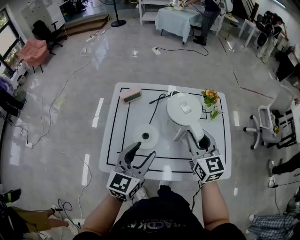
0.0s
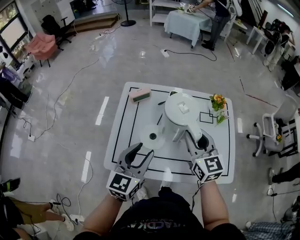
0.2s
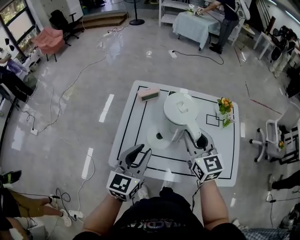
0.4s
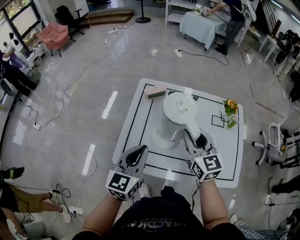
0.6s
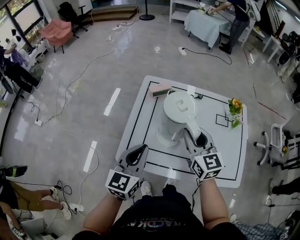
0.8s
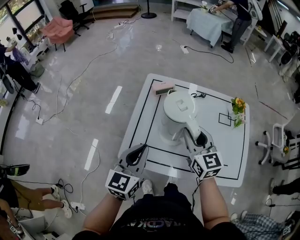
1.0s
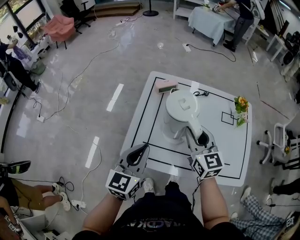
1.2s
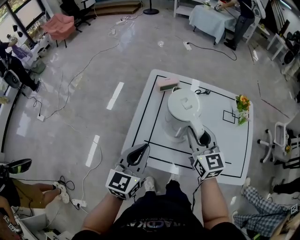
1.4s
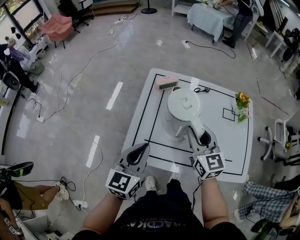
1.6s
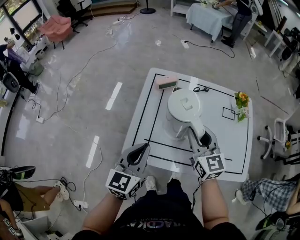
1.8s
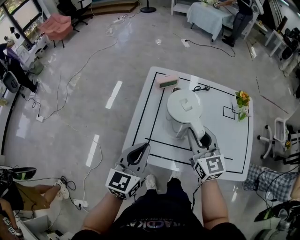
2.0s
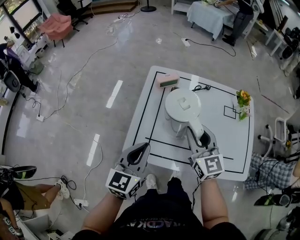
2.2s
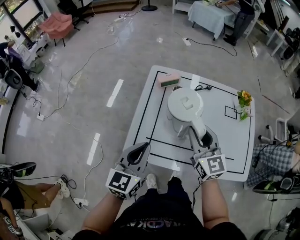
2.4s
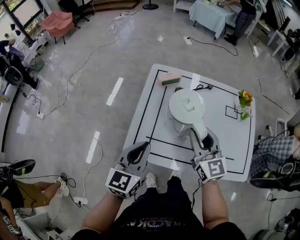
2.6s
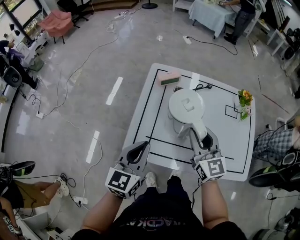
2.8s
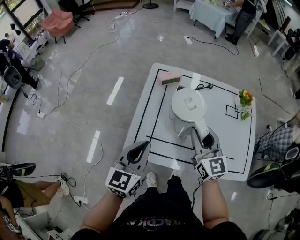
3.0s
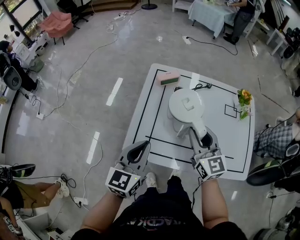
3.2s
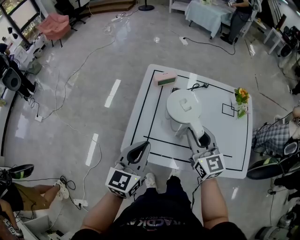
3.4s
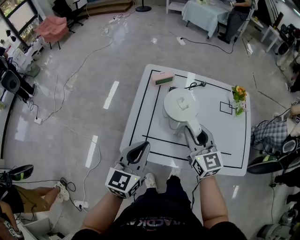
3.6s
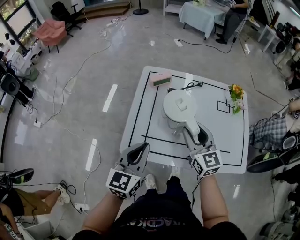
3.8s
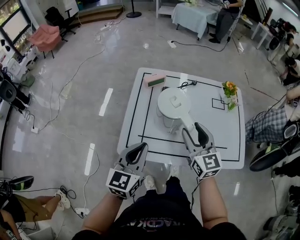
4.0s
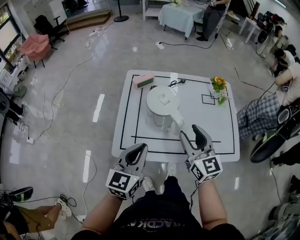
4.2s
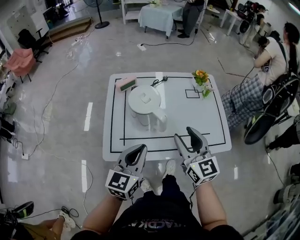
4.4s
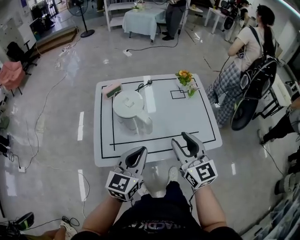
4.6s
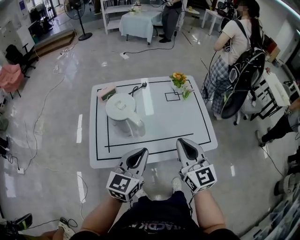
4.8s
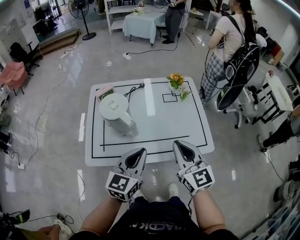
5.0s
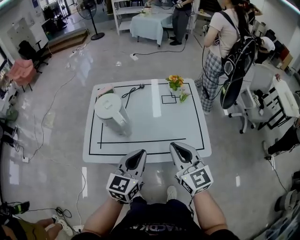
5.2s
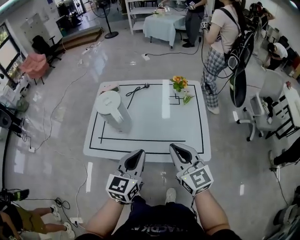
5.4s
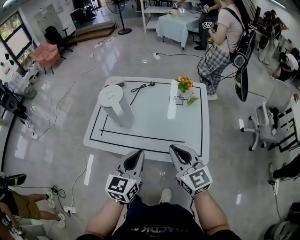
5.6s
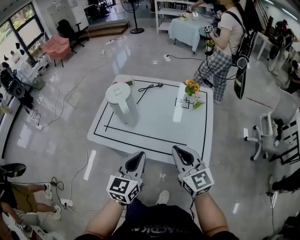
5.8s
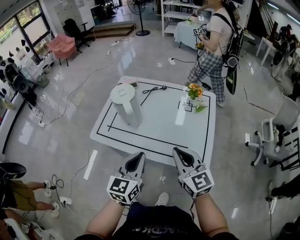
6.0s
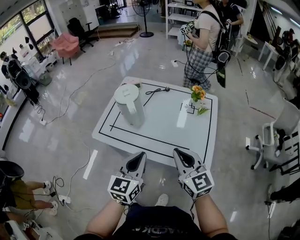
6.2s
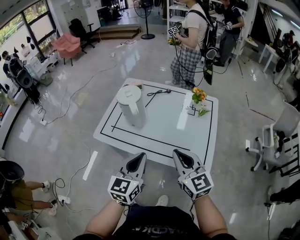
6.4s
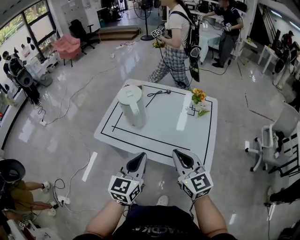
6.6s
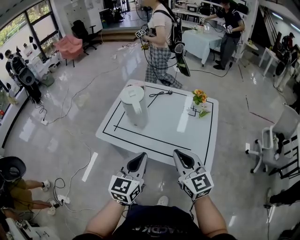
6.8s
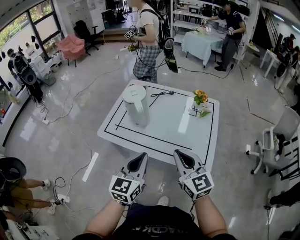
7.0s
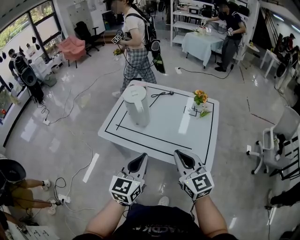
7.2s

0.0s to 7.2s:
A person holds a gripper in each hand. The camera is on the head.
0.0s to 1.4s: Both grippers move to the left, about 15 cm. The left gripper closes up.
1.4s to 2.8s: The grippers move only a little.
2.8s to 4.4s: The left gripper is displaced to the right by roughly 10 cm; the right gripper shifts roughly 15 cm backward and to the right.
4.4s to 5.8s: The left gripper moves roughly 20 cm. The right gripper moves roughly 20 cm, rotates roughly 20 degrees, and closes.
5.8s to 7.2s: The right gripper changes place by approximately 5 cm. The left gripper changes place by about 5 cm.

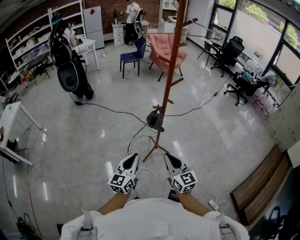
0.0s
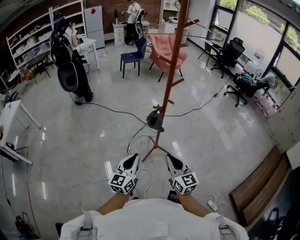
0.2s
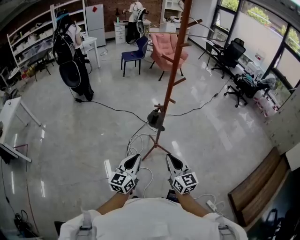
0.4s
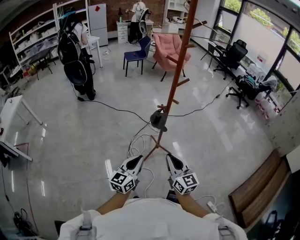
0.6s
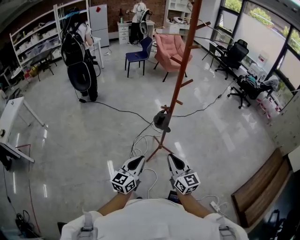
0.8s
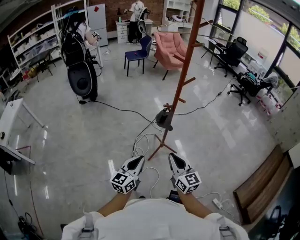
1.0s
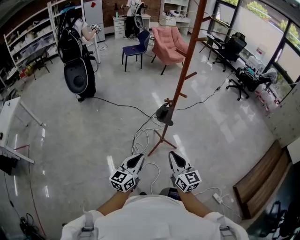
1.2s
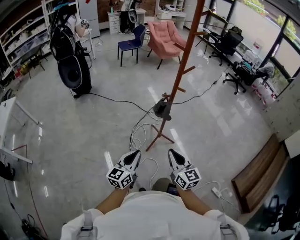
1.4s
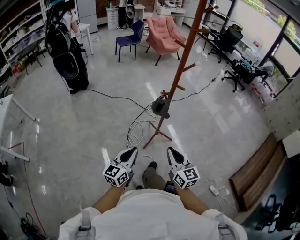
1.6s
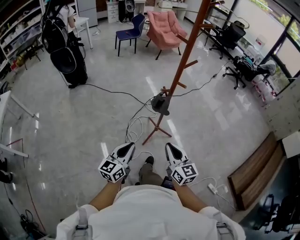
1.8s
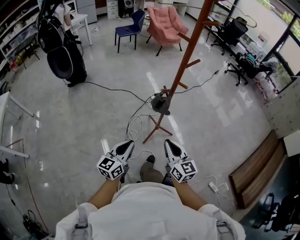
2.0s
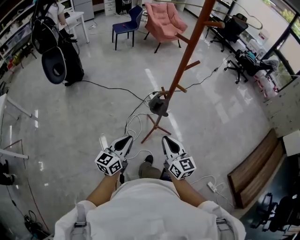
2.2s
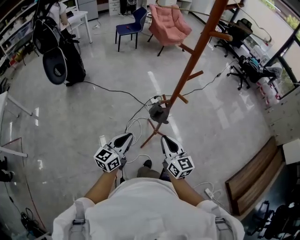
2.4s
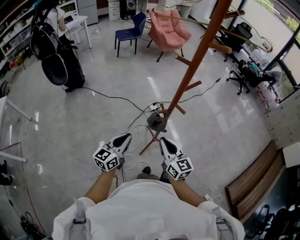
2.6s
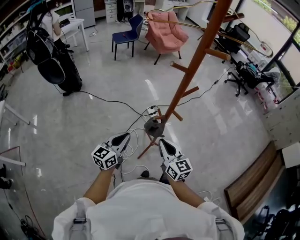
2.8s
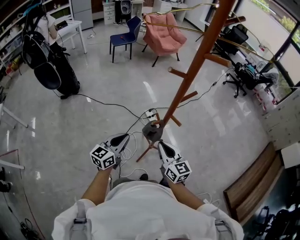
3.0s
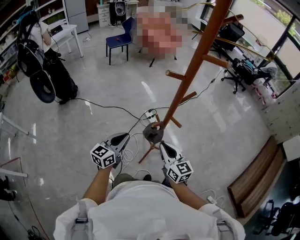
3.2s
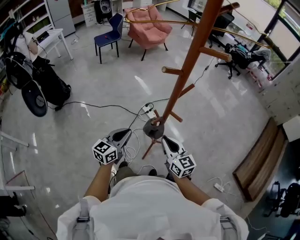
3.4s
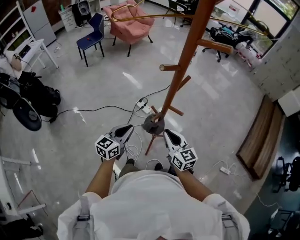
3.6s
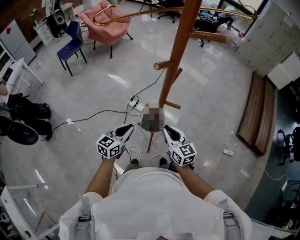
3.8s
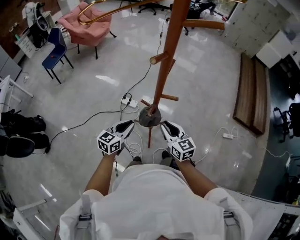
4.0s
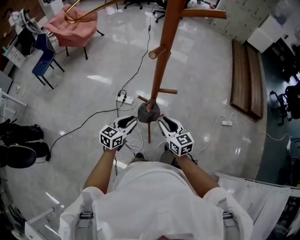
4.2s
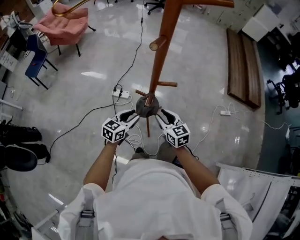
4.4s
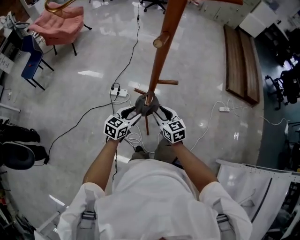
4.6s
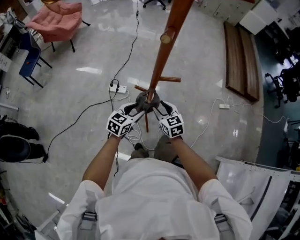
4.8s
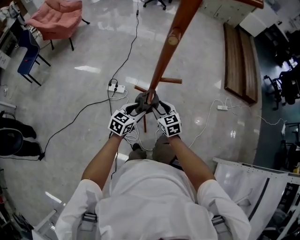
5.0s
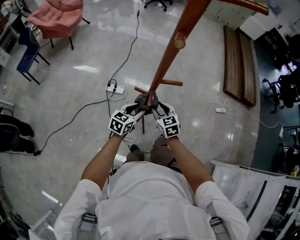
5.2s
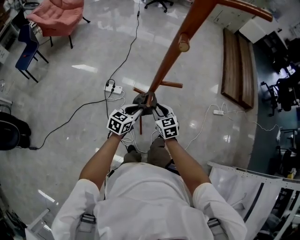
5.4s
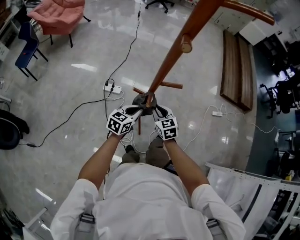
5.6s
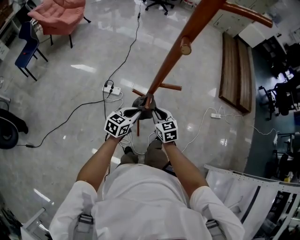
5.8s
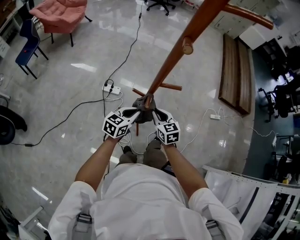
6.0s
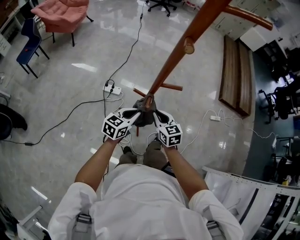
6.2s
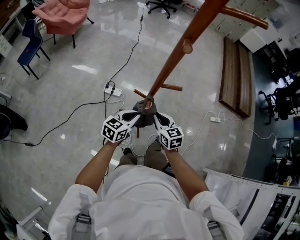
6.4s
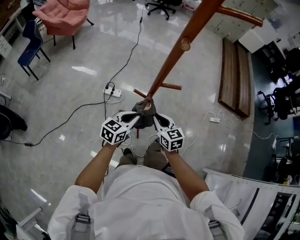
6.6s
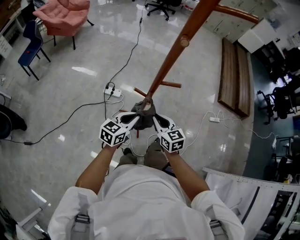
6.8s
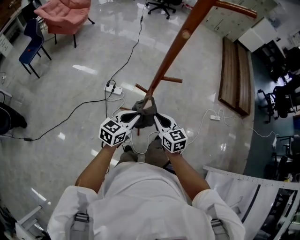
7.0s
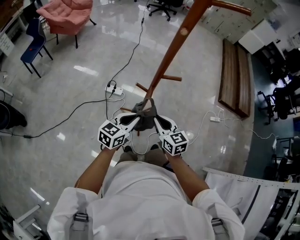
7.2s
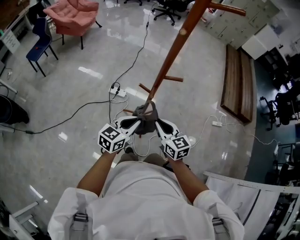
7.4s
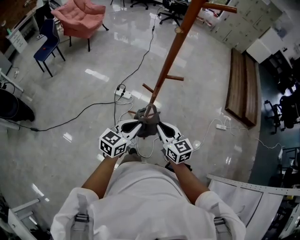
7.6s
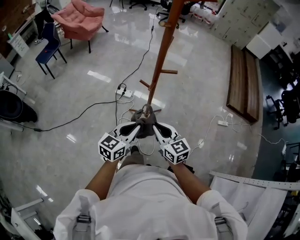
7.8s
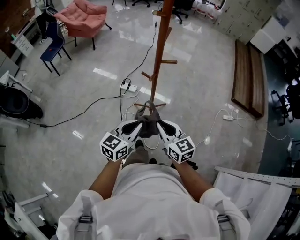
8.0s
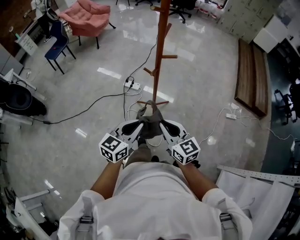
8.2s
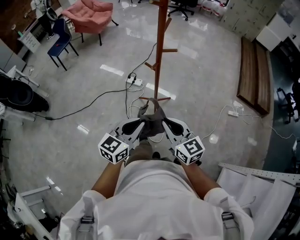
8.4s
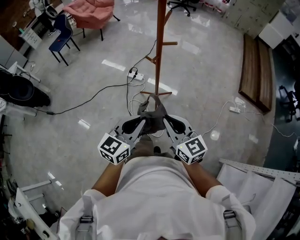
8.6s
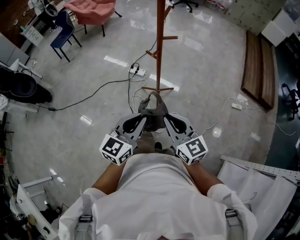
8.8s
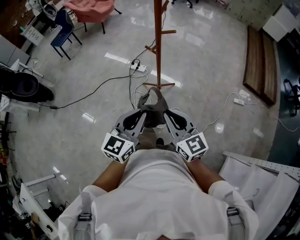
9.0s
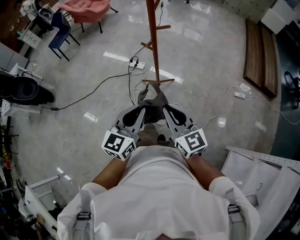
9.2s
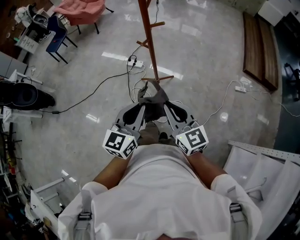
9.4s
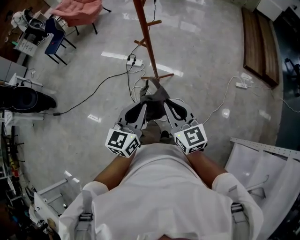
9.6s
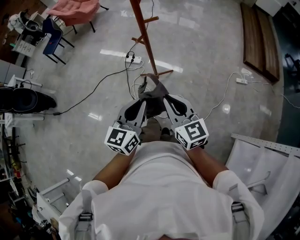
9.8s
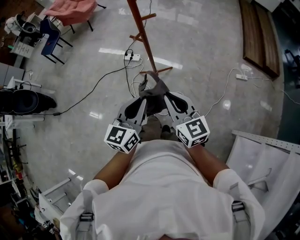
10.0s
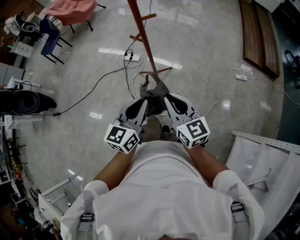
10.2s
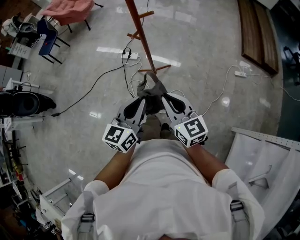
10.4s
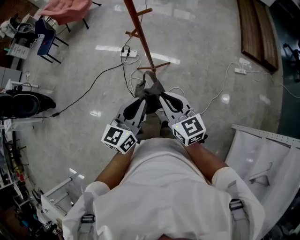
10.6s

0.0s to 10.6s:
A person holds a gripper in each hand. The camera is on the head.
0.0s to 1.6s: Both grippers travel together to the left, about 10 cm.
1.6s to 3.0s: The grippers both shift forward by roughly 30 cm.
3.0s to 4.6s: Both grippers move downward, some 20 cm. The left gripper turns by about 60 degrees, and opens up; the right gripper turns by approximately 50 degrees, and opens its fingers.
4.6s to 6.0s: The left gripper closes up. Meanwhile the right gripper closes up.
6.0s to 7.6s: The grippers both shift backward and upward by about 20 cm.
7.6s to 9.0s: Both grippers travel together backward and upward, roughly 20 cm.
9.0s to 10.6s: The left gripper moves approximately 5 cm, while the right gripper ends up some 5 cm from where it was.

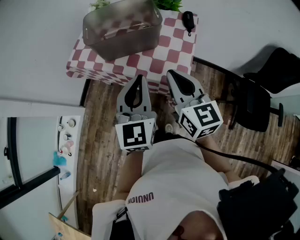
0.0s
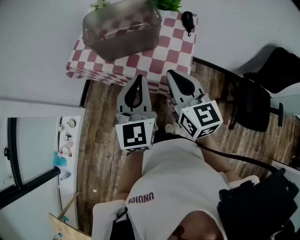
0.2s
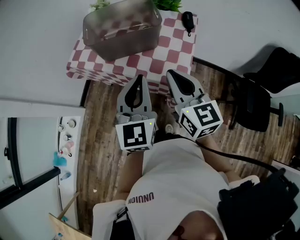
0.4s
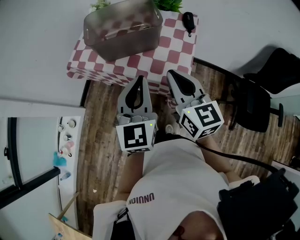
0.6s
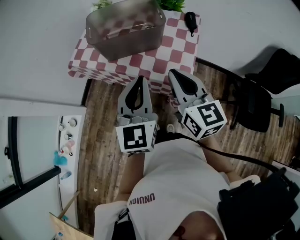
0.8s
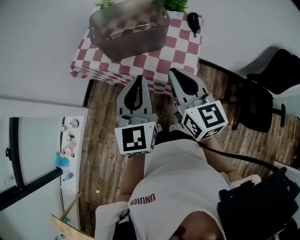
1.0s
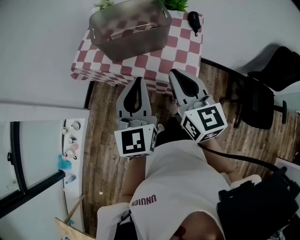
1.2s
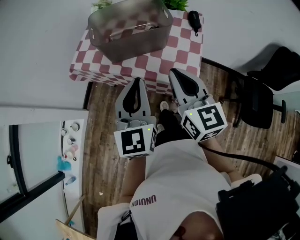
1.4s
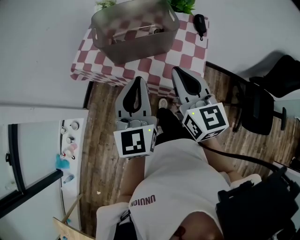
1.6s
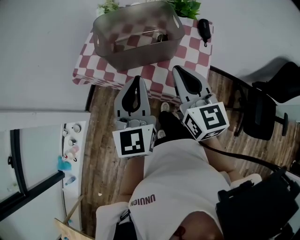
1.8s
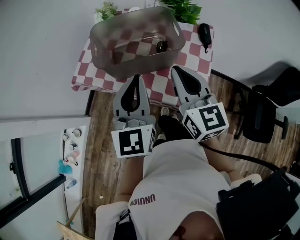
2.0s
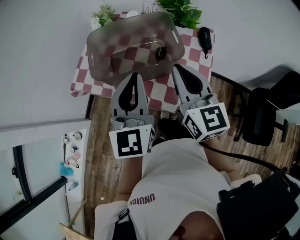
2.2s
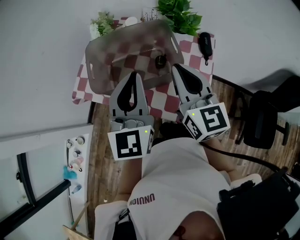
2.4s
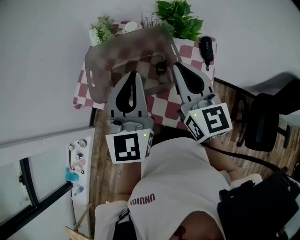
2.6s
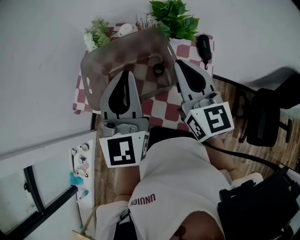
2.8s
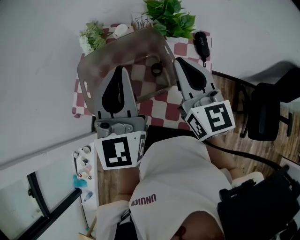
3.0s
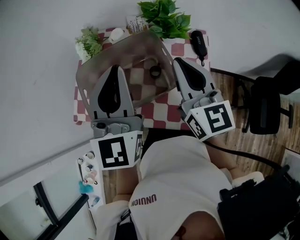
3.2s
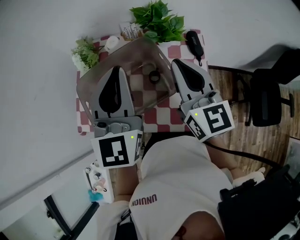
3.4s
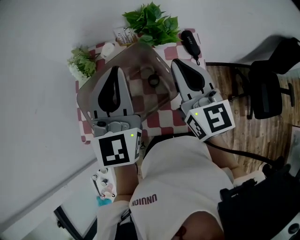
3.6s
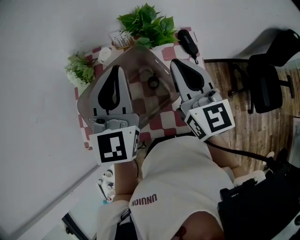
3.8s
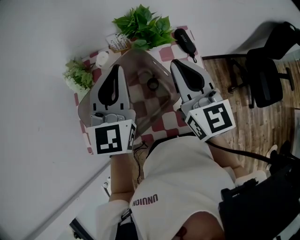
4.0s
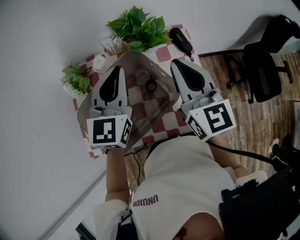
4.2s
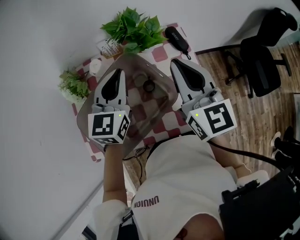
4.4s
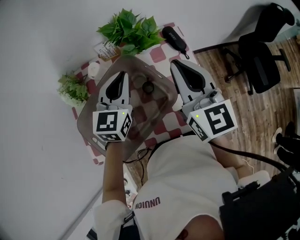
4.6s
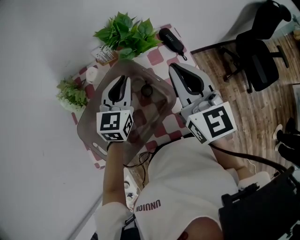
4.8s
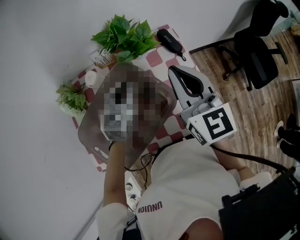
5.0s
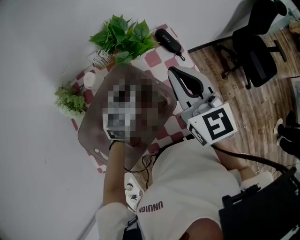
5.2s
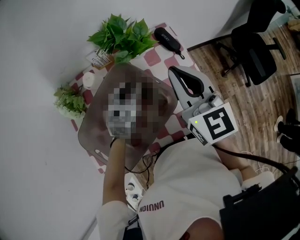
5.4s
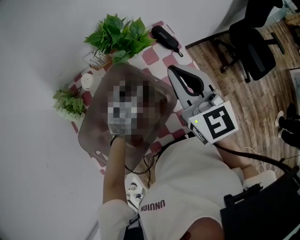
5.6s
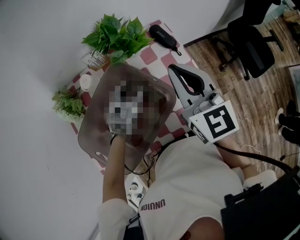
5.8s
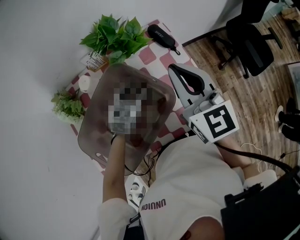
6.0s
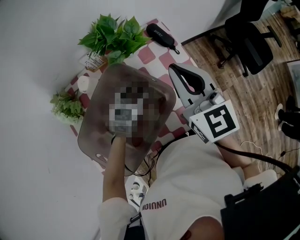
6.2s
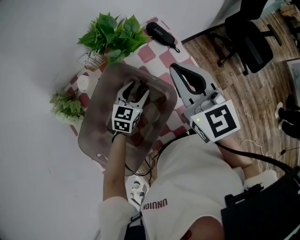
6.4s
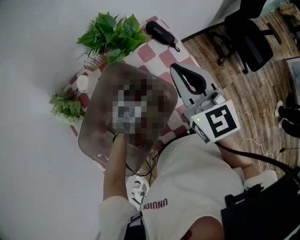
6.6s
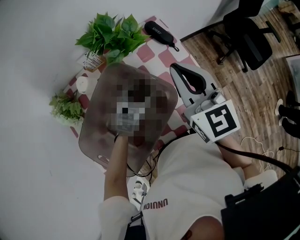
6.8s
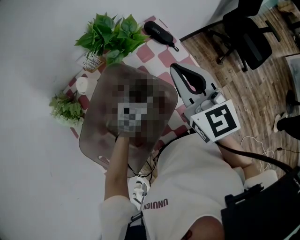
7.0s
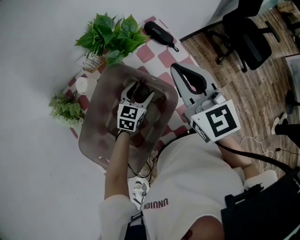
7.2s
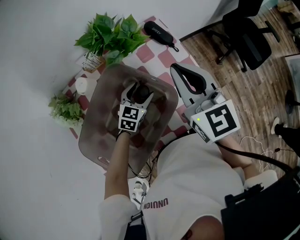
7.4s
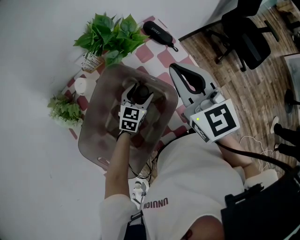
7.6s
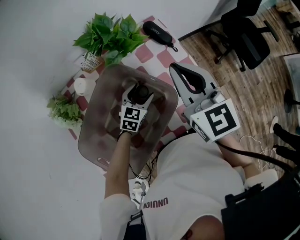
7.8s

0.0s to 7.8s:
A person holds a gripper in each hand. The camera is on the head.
0.0s to 1.6s: The right gripper heads forward, covering about 5 cm; the left gripper moves to the left, roughly 5 cm.
1.6s to 3.2s: The left gripper is displaced forward and upward by about 25 cm, while the right gripper shifts about 25 cm forward.
3.2s to 4.6s: The right gripper turns by approximately 20 degrees, while the left gripper moves downward, some 15 cm, and rotates approximately 40 degrees.
4.6s to 6.2s: The left gripper heads downward, covering some 15 cm, changes its angle by approximately 30 degrees, and opens.
6.2s to 7.8s: The left gripper goes about 5 cm downward.
